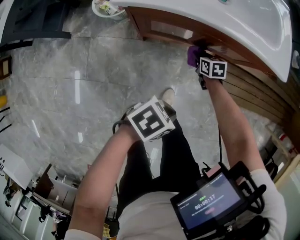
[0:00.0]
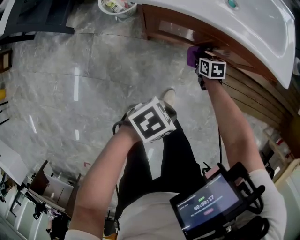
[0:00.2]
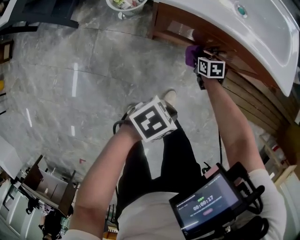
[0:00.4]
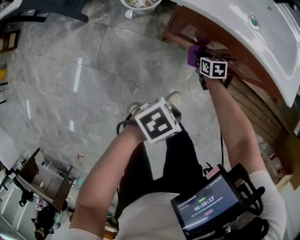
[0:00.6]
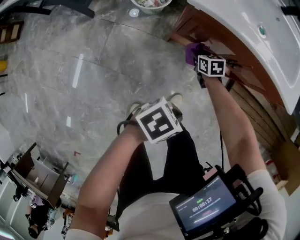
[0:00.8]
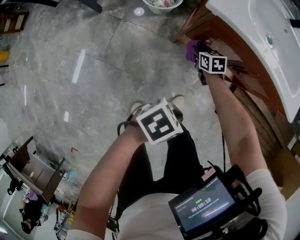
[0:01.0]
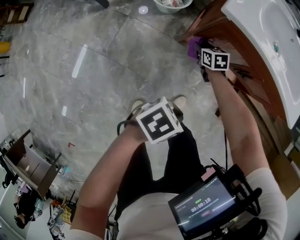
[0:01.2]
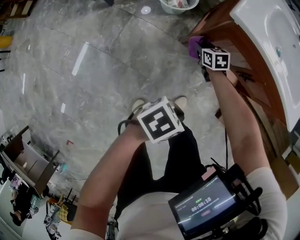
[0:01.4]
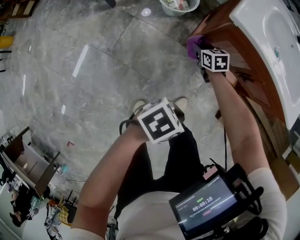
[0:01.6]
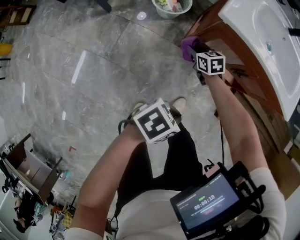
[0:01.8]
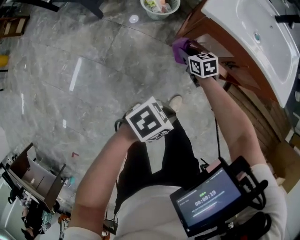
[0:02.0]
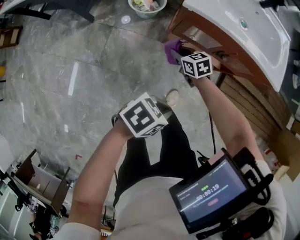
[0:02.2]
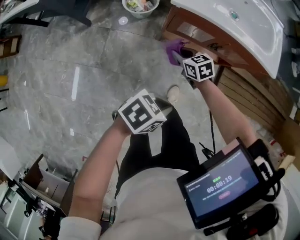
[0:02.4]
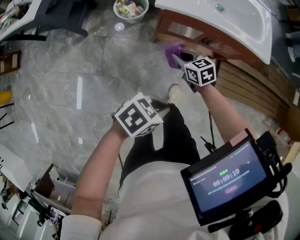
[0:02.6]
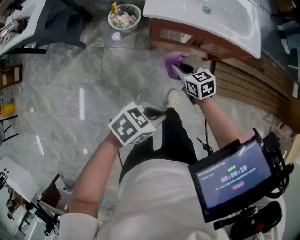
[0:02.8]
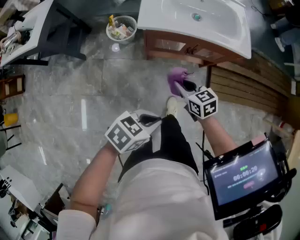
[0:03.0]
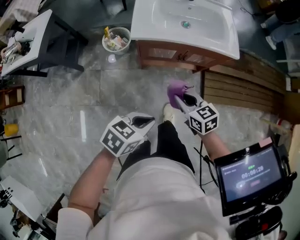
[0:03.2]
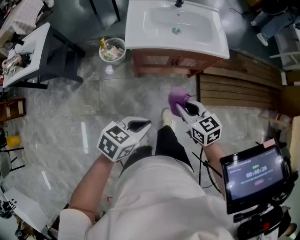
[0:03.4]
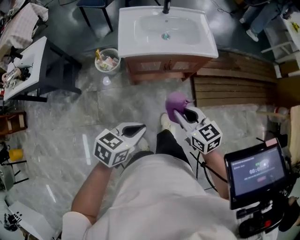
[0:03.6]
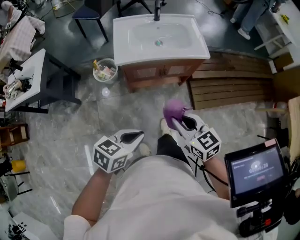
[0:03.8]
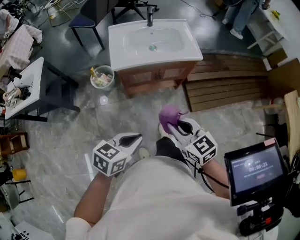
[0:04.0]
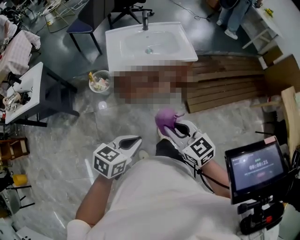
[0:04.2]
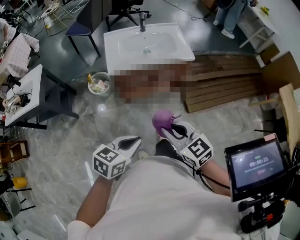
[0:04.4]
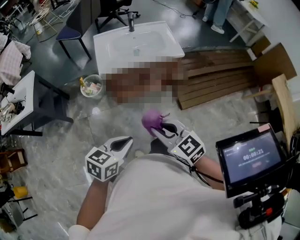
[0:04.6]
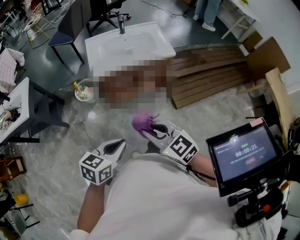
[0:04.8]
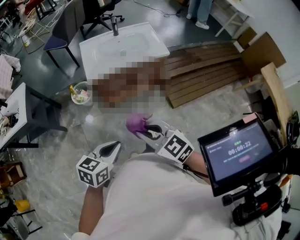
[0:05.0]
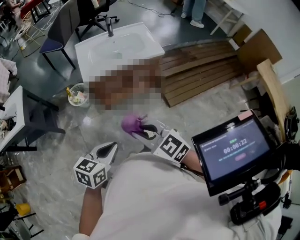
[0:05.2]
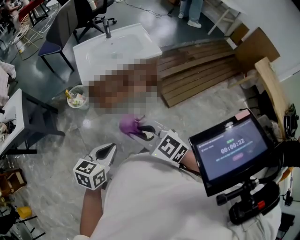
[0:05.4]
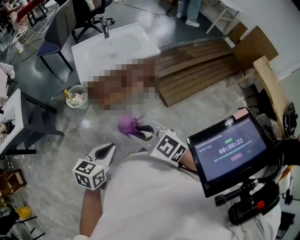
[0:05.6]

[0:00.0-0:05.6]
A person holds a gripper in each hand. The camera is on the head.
0:00.0 to 0:01.4: The left gripper moves approximately 15 cm, and turns by some 20 degrees; the right gripper moves roughly 30 cm, and changes its angle by roughly 30 degrees.
0:01.4 to 0:02.8: The two grippers go about 25 cm upward.
0:02.8 to 0:04.2: The right gripper goes approximately 30 cm upward, and turns by some 20 degrees. The left gripper heads upward, covering about 20 cm.
0:04.2 to 0:05.6: The grippers both shift backward by about 5 cm.

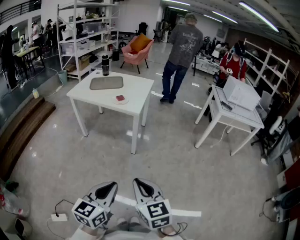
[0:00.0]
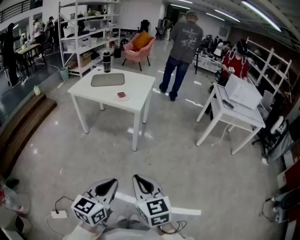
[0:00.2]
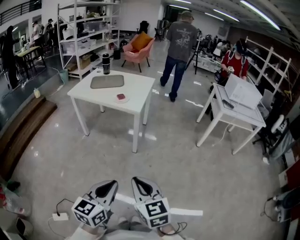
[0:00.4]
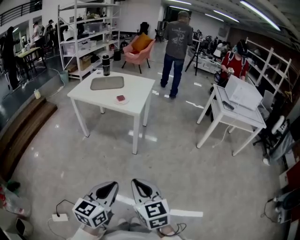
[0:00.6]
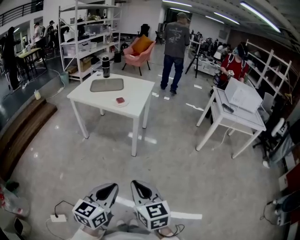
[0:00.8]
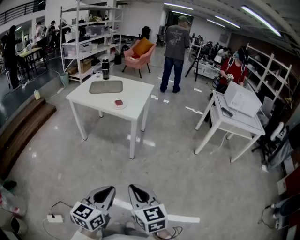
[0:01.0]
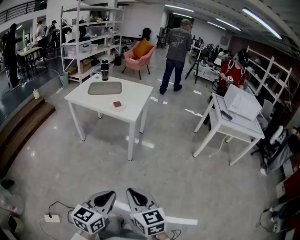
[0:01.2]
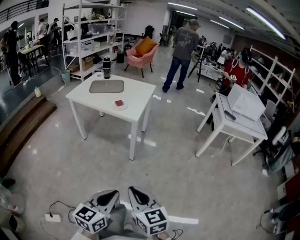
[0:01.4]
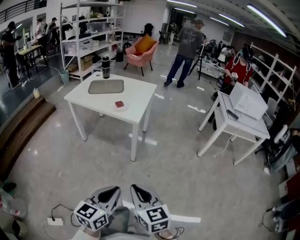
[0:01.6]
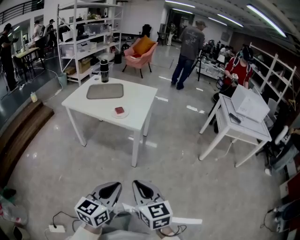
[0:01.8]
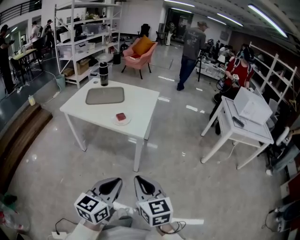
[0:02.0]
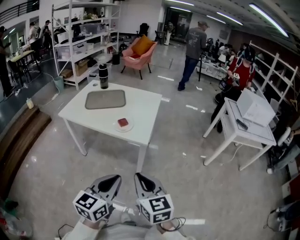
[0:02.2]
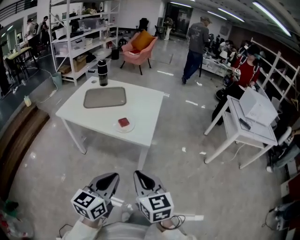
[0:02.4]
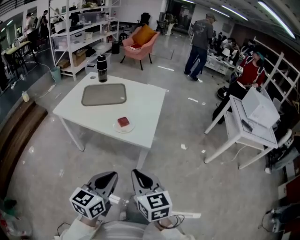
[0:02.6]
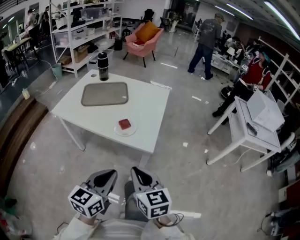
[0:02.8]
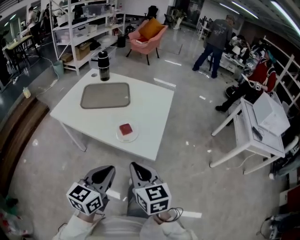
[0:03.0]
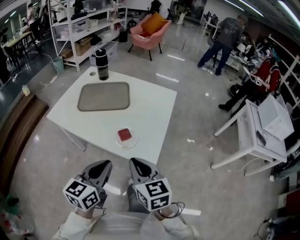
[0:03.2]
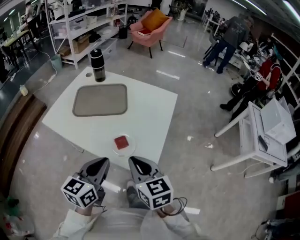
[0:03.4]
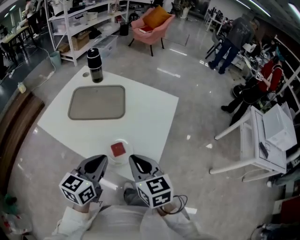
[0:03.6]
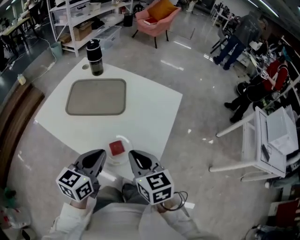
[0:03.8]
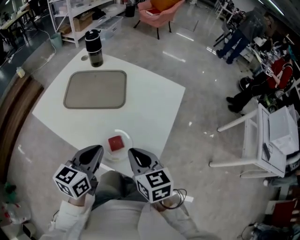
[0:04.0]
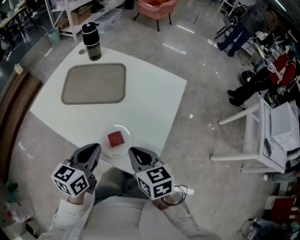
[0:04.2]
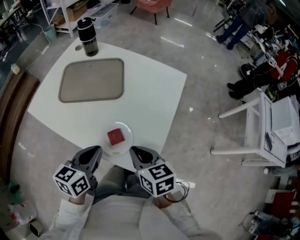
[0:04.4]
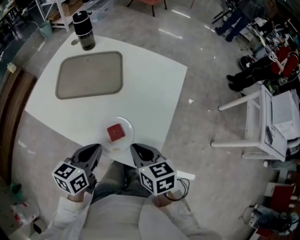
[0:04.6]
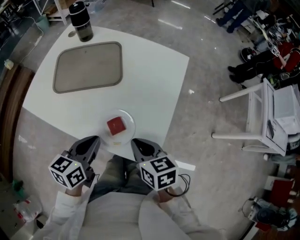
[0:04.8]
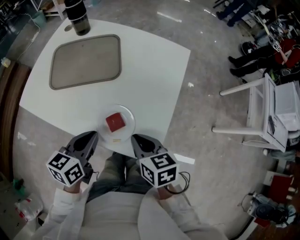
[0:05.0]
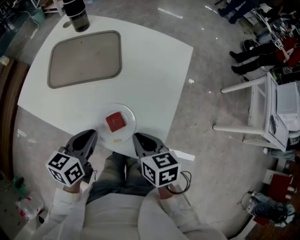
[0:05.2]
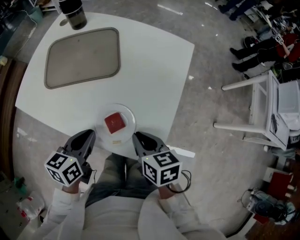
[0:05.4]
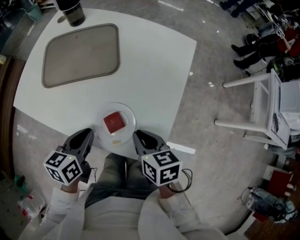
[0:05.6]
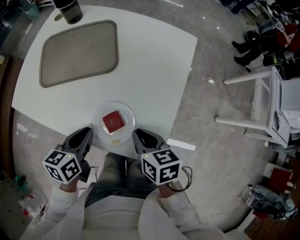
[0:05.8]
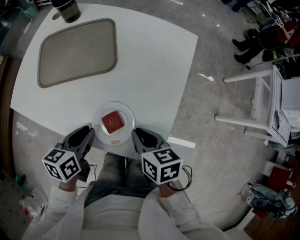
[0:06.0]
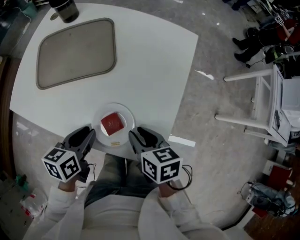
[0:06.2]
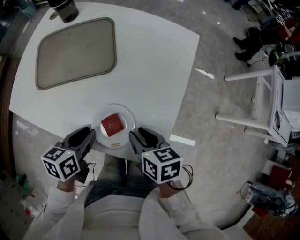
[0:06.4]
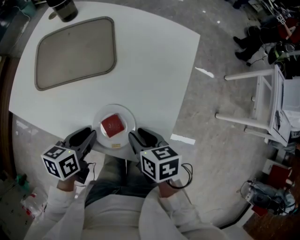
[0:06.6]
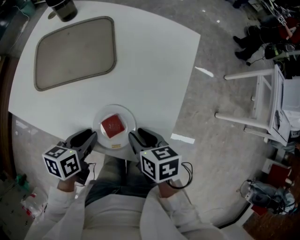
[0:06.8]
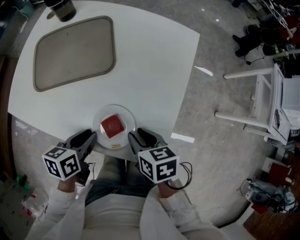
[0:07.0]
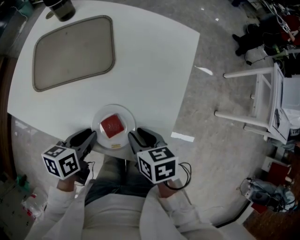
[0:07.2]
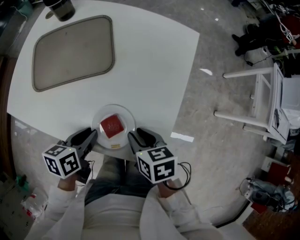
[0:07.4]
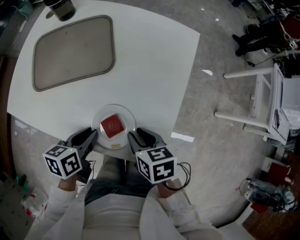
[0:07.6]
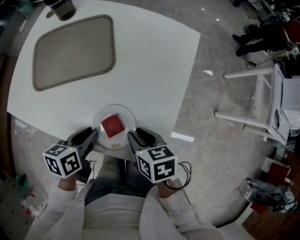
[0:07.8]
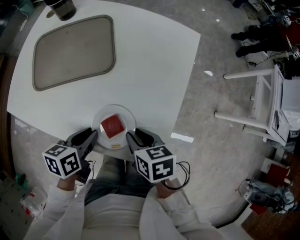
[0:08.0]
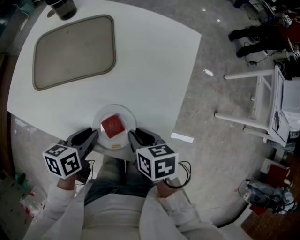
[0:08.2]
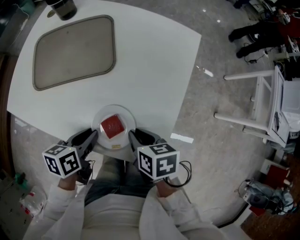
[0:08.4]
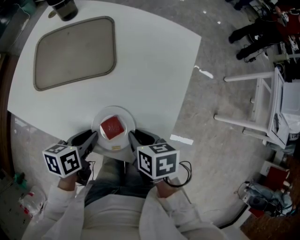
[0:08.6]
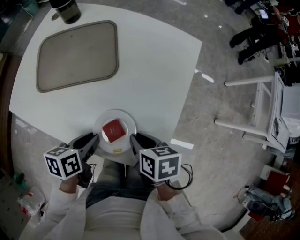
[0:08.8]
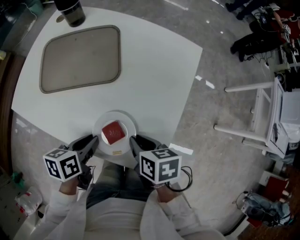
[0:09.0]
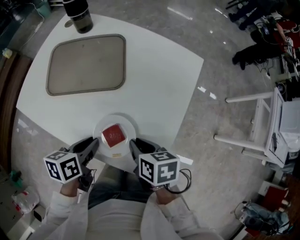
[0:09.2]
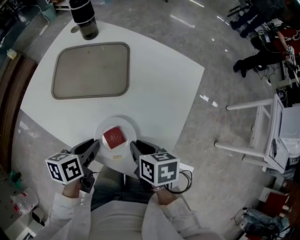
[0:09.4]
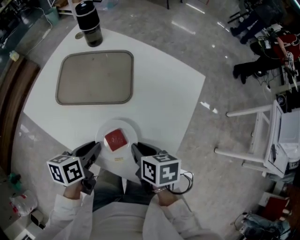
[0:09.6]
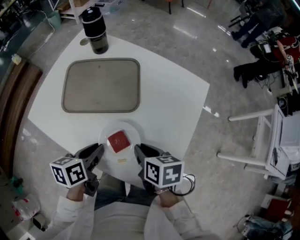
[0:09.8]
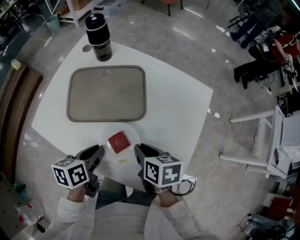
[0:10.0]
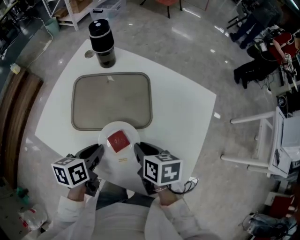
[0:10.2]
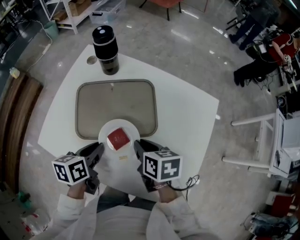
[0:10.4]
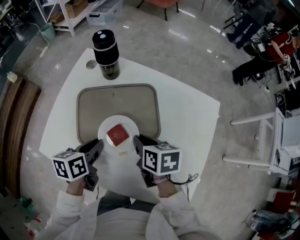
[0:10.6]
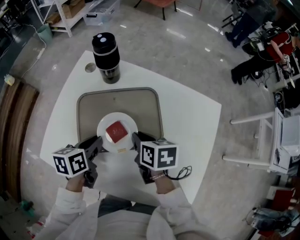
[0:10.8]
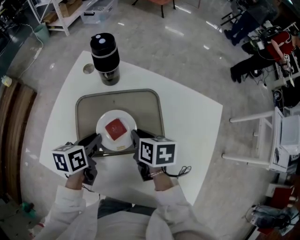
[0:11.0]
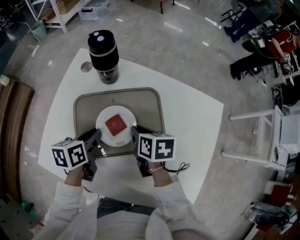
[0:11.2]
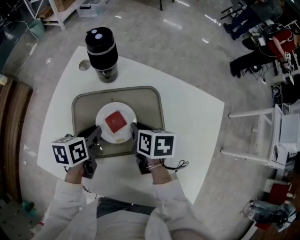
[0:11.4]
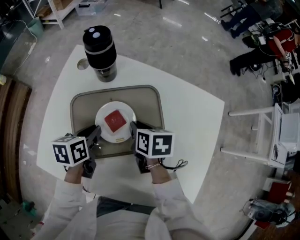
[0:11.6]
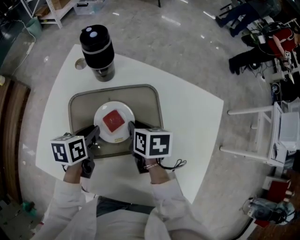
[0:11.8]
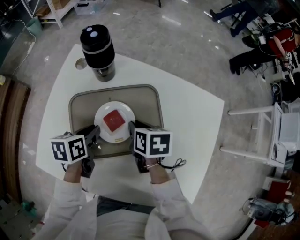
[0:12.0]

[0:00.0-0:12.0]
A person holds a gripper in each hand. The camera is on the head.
0:00.0 to 0:01.6: The two grippers go approximately 10 cm forward.
0:01.6 to 0:03.0: Both grippers are carried forward, roughly 50 cm.
0:03.0 to 0:04.4: The right gripper moves forward and downward, about 25 cm, and swivels about 20 degrees. The left gripper travels forward by about 25 cm.
0:04.4 to 0:06.0: The two grippers go roughly 10 cm downward.
0:06.0 to 0:07.6: The right gripper opens its fingers.
0:07.6 to 0:09.0: There are only small adjustments of the grippers.
0:09.0 to 0:10.4: Both grippers move forward and to the left, about 20 cm.
0:10.4 to 0:12.0: The grippers both shift forward and downward by about 15 cm.

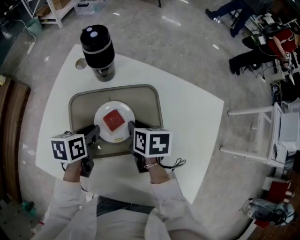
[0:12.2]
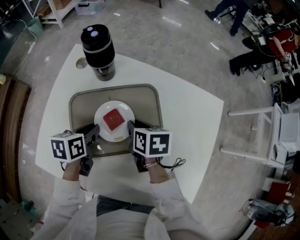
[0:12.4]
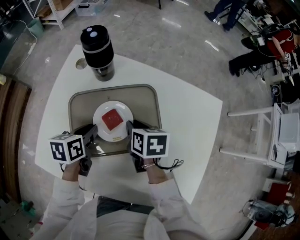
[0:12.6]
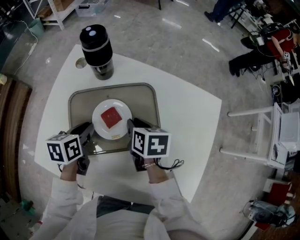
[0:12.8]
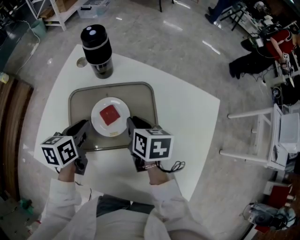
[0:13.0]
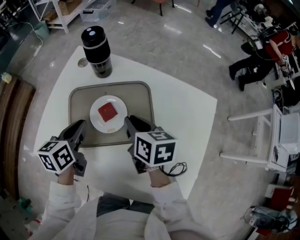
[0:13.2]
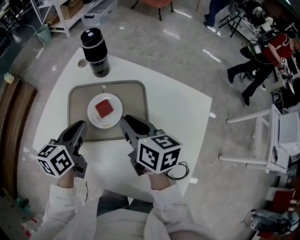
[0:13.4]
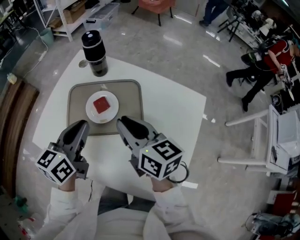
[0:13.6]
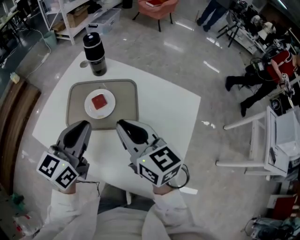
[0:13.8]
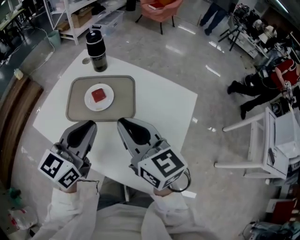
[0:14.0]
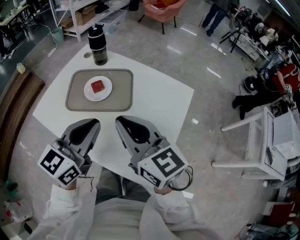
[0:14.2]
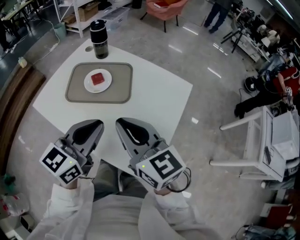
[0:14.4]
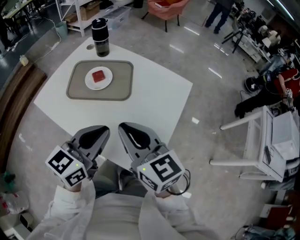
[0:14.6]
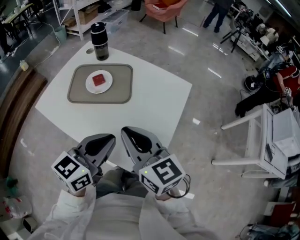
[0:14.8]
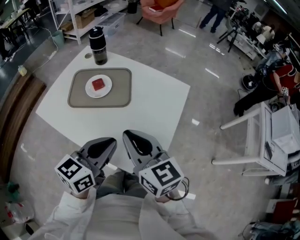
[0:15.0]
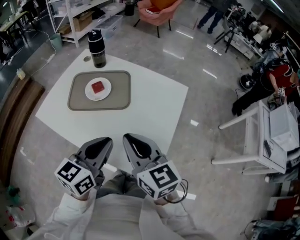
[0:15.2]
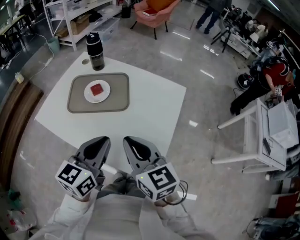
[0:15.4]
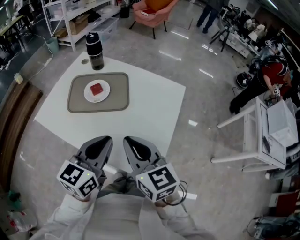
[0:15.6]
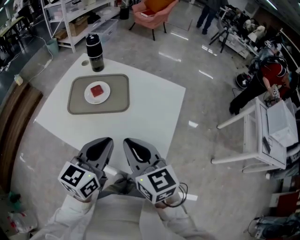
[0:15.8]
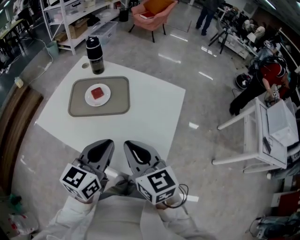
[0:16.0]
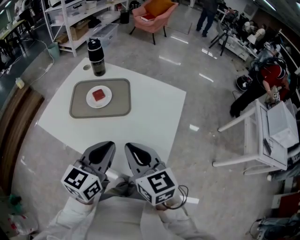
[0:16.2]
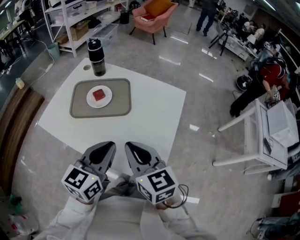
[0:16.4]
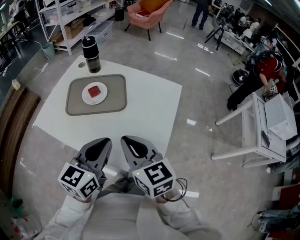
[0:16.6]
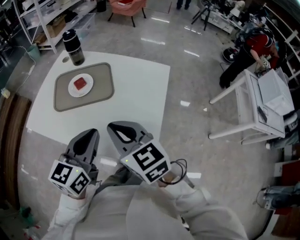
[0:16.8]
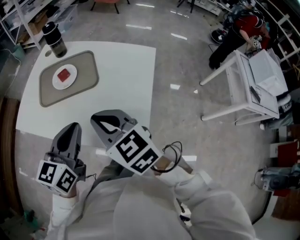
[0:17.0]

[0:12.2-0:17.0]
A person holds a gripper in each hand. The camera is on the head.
0:12.2 to 0:13.8: The left gripper goes some 30 cm upward, backward and to the right, and tips its fingers upward by roughly 40 degrees. The right gripper travels upward and backward by roughly 25 cm, and points its fingers some 40 degrees further upward.
0:13.8 to 0:15.4: The left gripper is displaced backward and to the right by roughly 20 cm. The right gripper goes roughly 20 cm backward.
0:15.4 to 0:17.0: There are only small adjustments of the grippers.

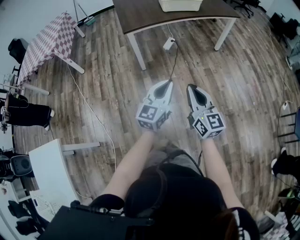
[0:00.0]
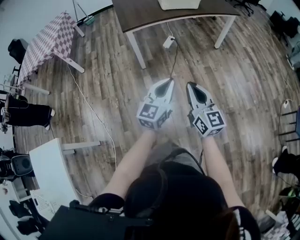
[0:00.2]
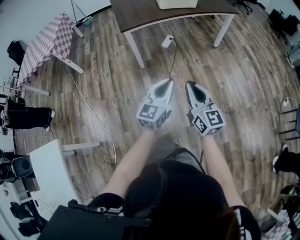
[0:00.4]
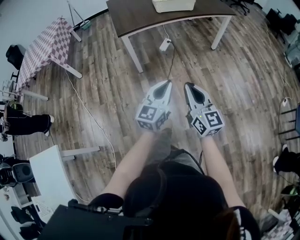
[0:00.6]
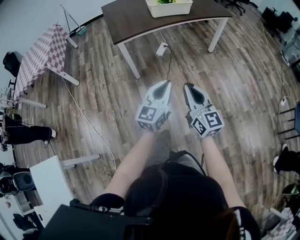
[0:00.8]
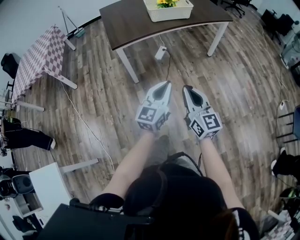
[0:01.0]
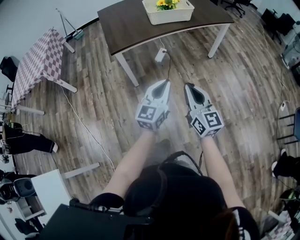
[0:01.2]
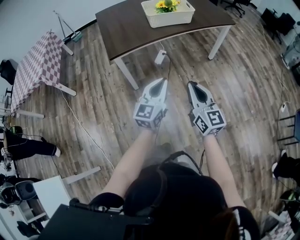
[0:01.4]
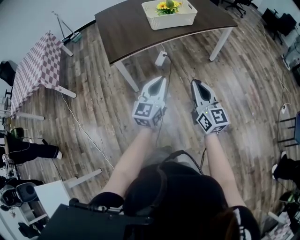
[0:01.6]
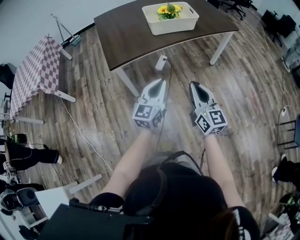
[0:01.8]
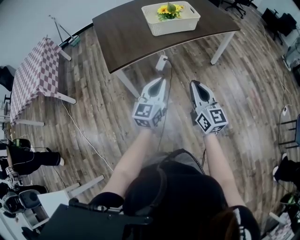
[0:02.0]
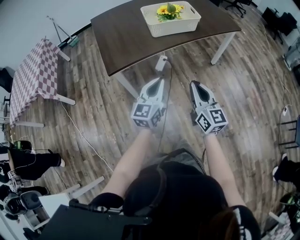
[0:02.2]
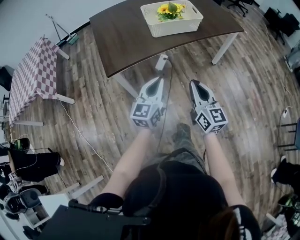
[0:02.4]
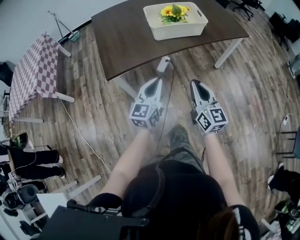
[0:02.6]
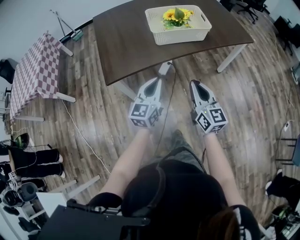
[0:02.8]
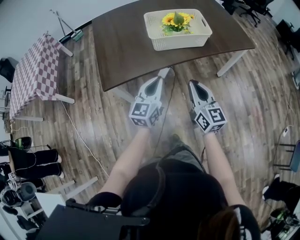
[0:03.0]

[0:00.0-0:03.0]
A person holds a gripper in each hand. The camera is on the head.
0:00.0 to 0:01.6: The grippers both shift forward by approximately 25 cm.
0:01.6 to 0:03.0: Both grippers travel together forward, roughly 25 cm.
